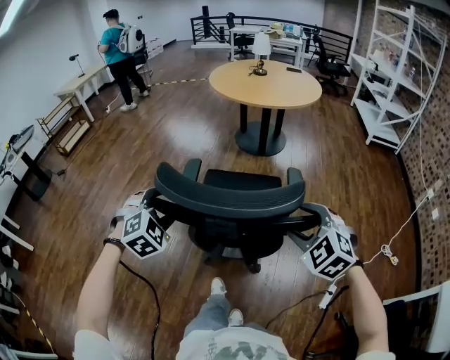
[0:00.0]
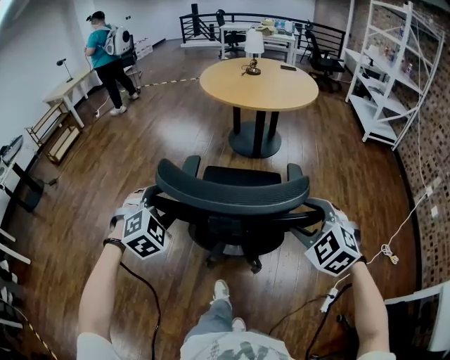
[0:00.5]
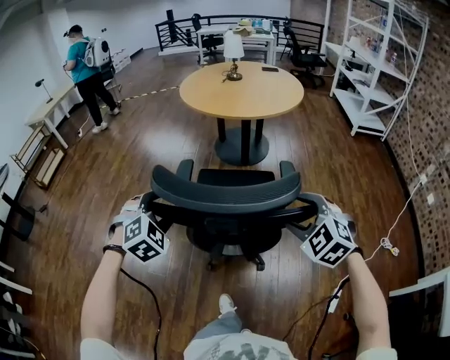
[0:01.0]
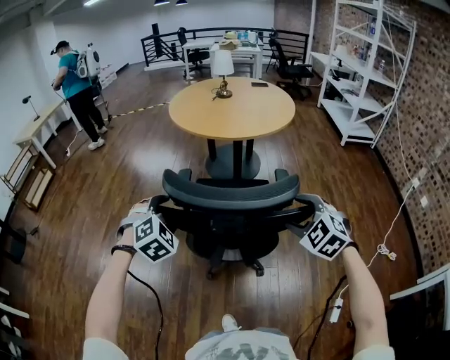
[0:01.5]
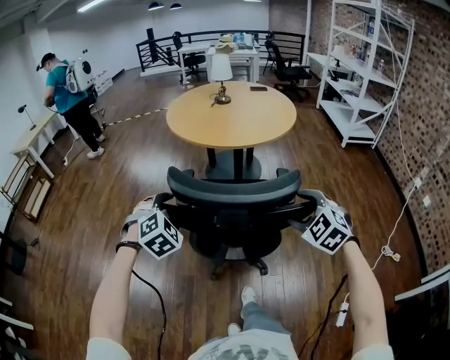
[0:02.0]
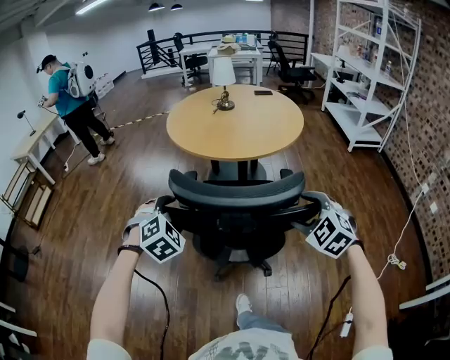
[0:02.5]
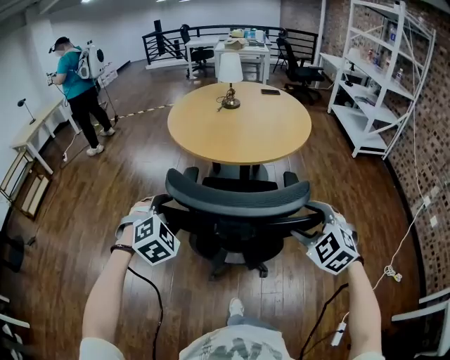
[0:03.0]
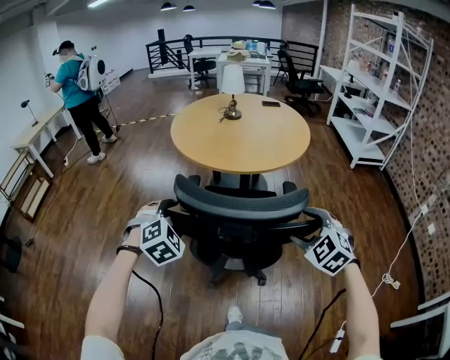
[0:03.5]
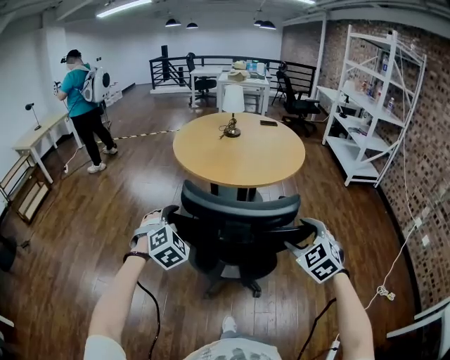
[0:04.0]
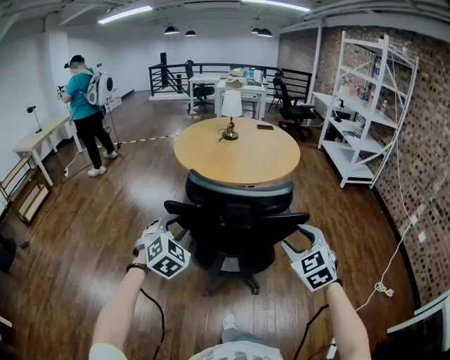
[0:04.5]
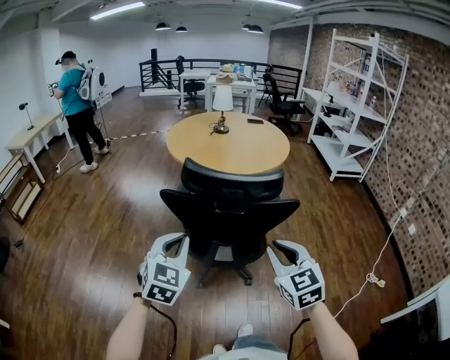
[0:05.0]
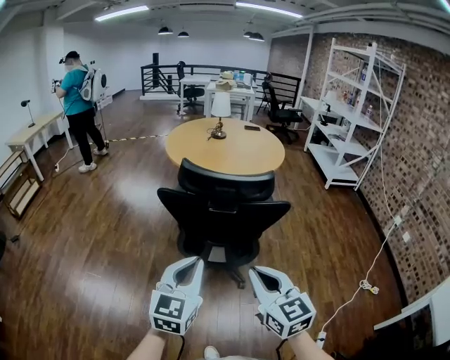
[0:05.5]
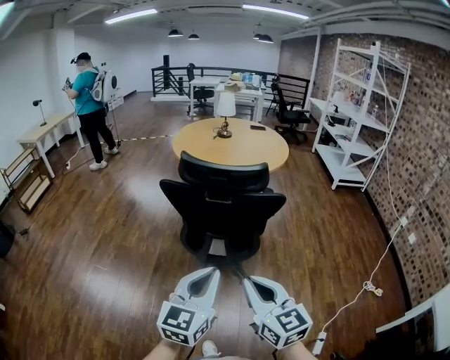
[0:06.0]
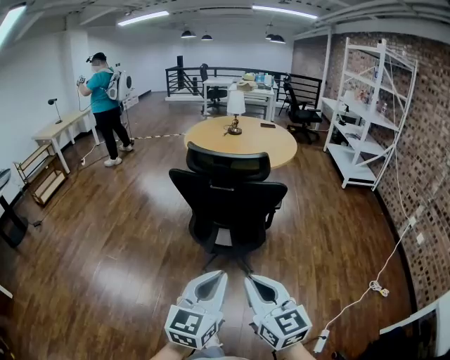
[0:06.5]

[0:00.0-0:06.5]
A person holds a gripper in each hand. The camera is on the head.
0:00.0 to 0:02.0: The two grippers go approximately 35 cm forward.
0:02.0 to 0:04.5: The right gripper moves about 10 cm forward and comes back, and swivels about 20 degrees, while the left gripper moves roughly 15 cm forward and comes back.
0:04.5 to 0:06.5: The left gripper travels backward and to the right by about 40 cm, twists approximately 50 degrees counterclockwise, seen from behind, and closes up. Meanwhile the right gripper heads backward, covering approximately 30 cm, swivels some 40 degrees, and closes.

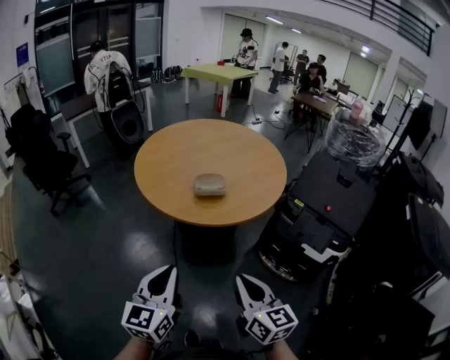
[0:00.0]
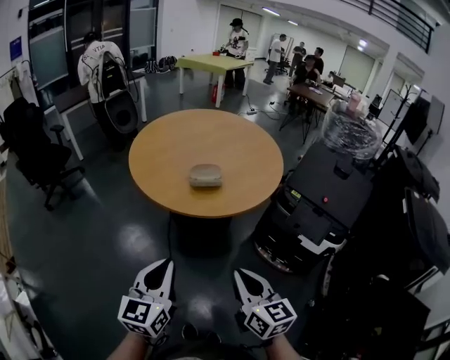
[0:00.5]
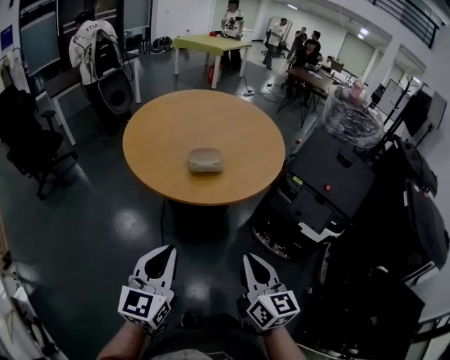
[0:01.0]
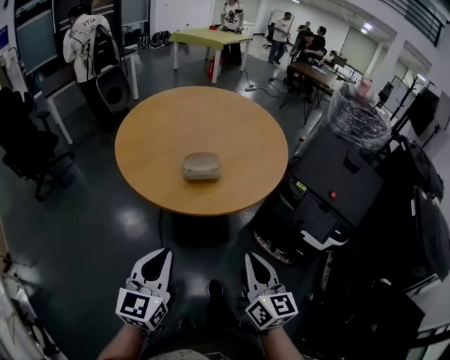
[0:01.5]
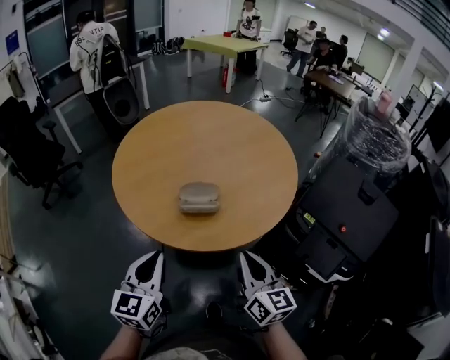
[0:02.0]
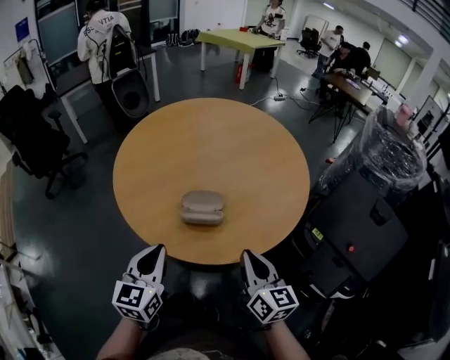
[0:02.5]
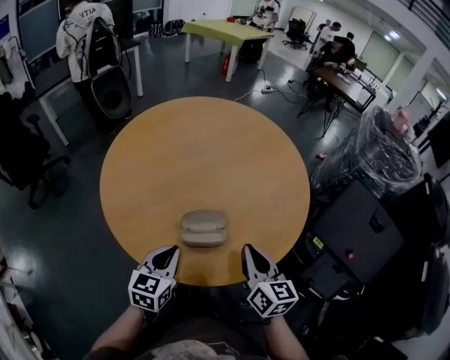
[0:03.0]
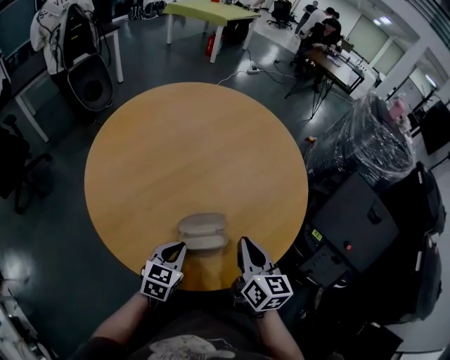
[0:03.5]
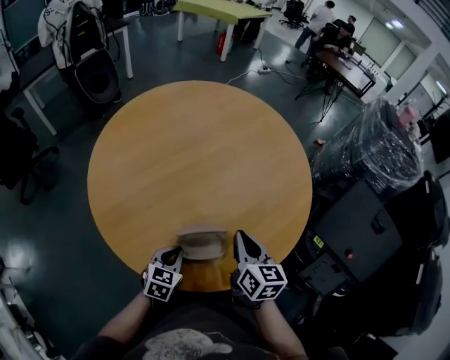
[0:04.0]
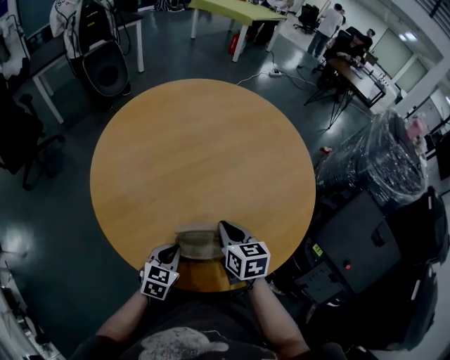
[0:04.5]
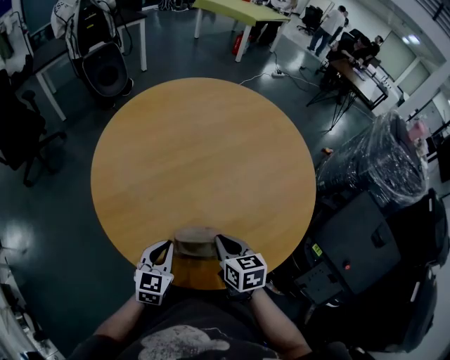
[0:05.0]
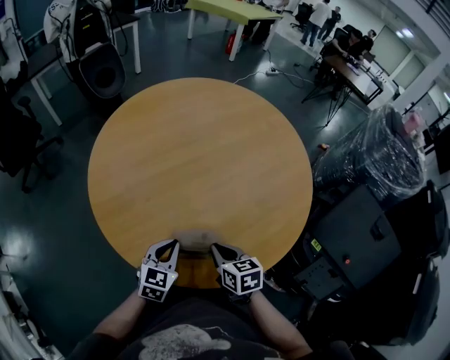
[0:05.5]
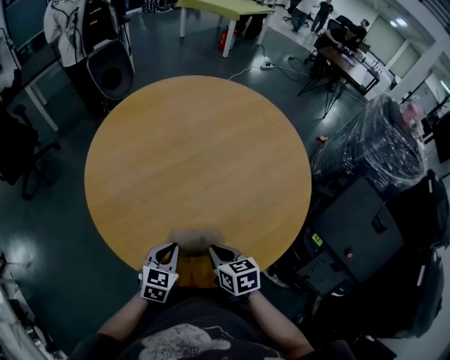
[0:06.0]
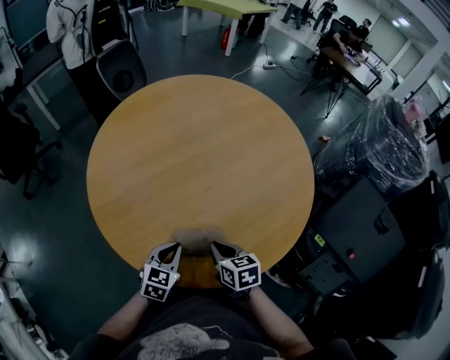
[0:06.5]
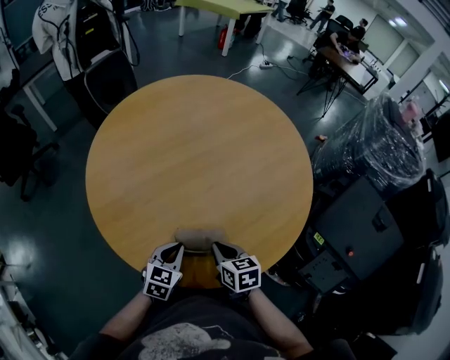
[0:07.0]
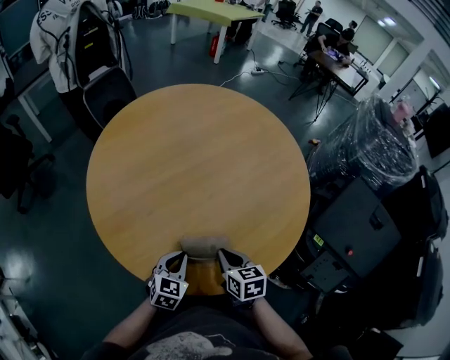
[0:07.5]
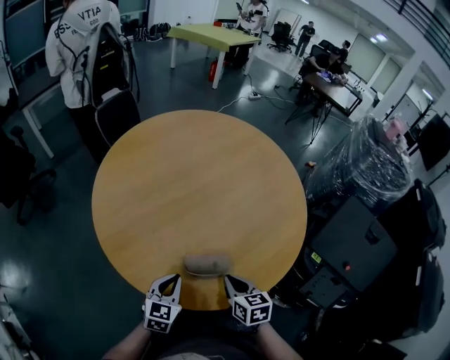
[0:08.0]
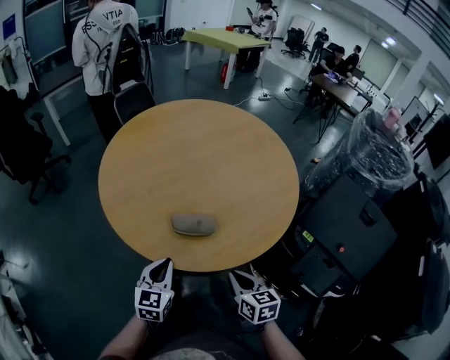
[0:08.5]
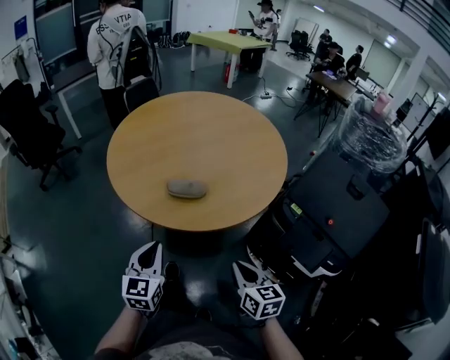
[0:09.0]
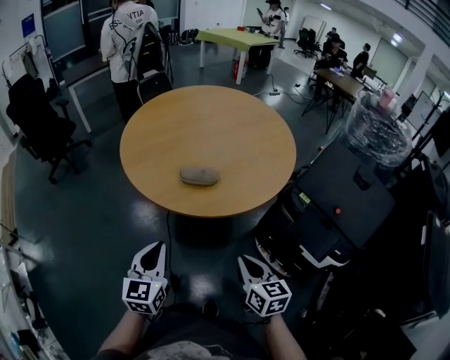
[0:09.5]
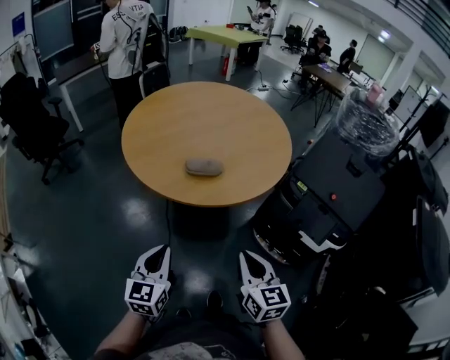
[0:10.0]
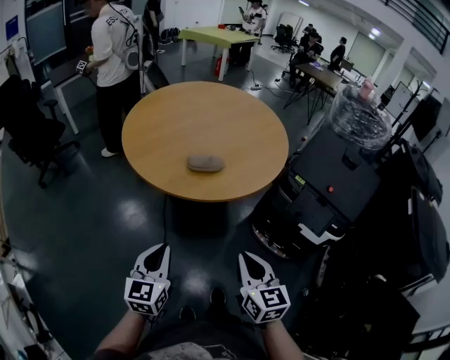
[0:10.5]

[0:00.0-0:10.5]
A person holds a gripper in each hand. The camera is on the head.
0:00.0 to 0:02.0: Both grippers travel together forward, approximately 25 cm.
0:02.0 to 0:04.0: The left gripper travels forward and downward by approximately 35 cm, and changes its angle by roughly 30 degrees. The right gripper heads forward, covering some 25 cm.
0:04.0 to 0:06.5: The right gripper moves downward and to the left, roughly 10 cm, and turns by approximately 30 degrees.
0:06.5 to 0:08.5: The left gripper travels backward and upward by some 15 cm. The right gripper heads backward and to the right, covering some 20 cm.
0:08.5 to 0:10.5: Both grippers move backward, approximately 25 cm. The right gripper changes its angle by some 20 degrees.

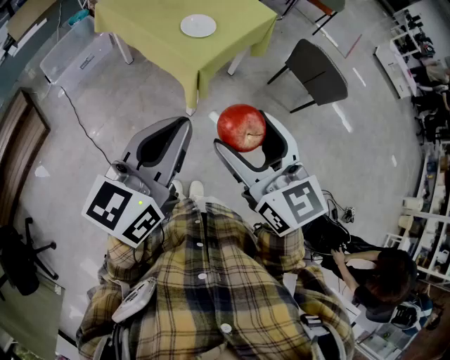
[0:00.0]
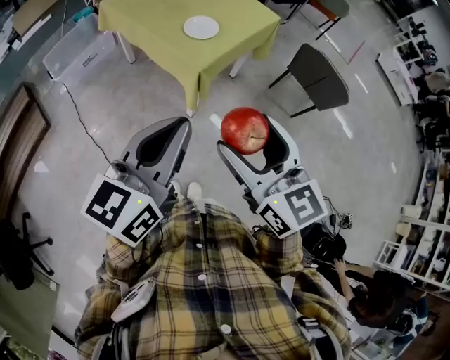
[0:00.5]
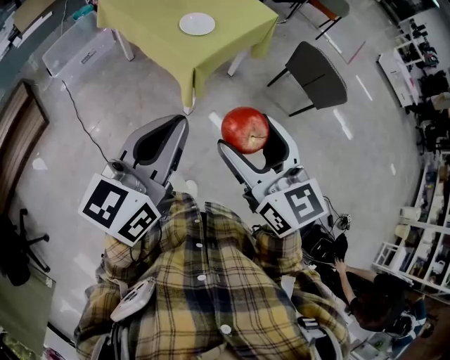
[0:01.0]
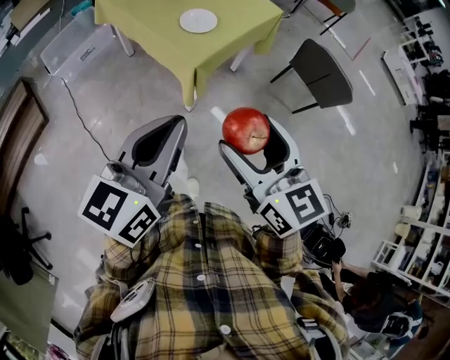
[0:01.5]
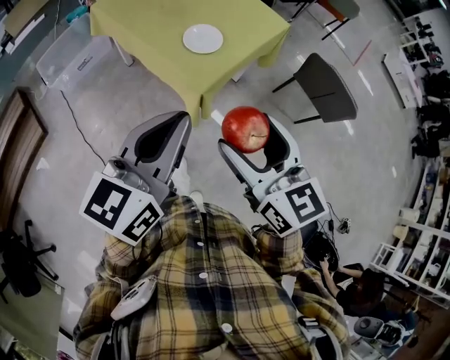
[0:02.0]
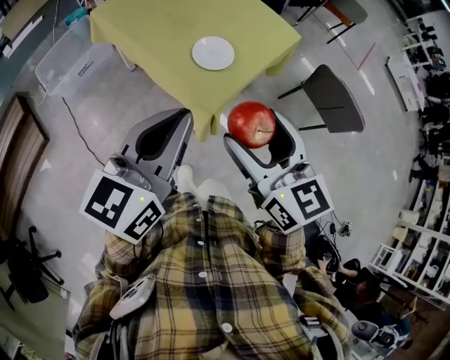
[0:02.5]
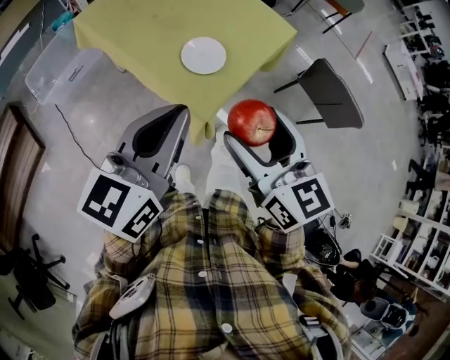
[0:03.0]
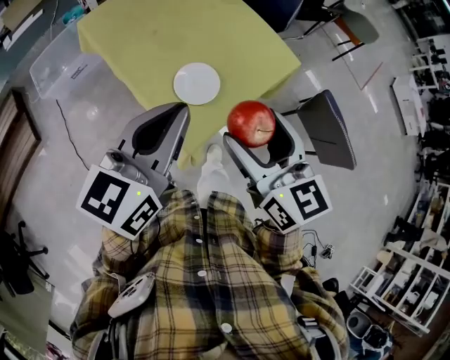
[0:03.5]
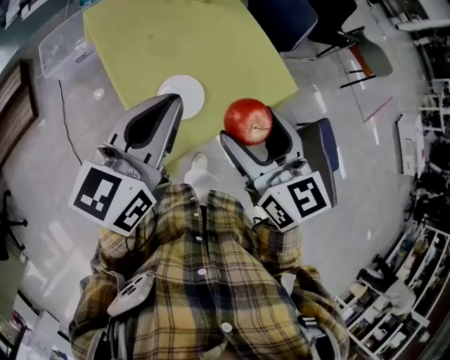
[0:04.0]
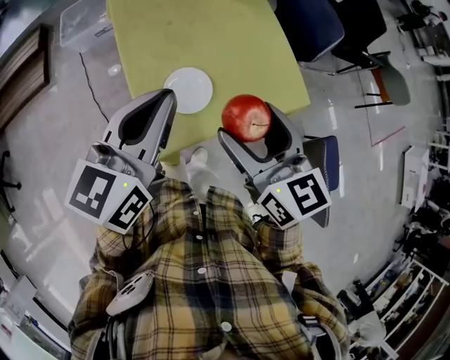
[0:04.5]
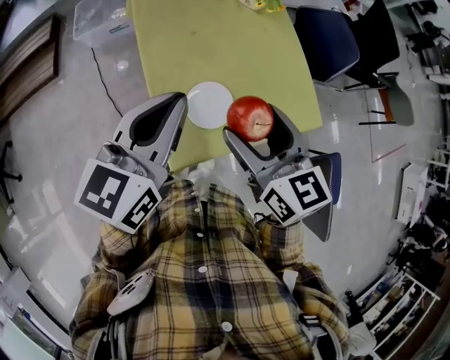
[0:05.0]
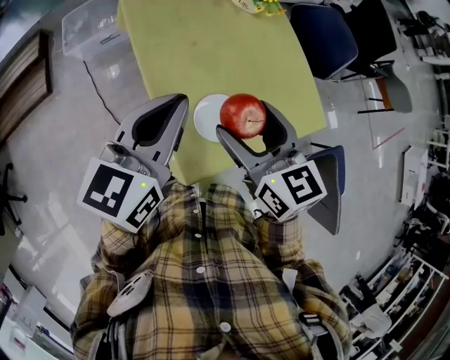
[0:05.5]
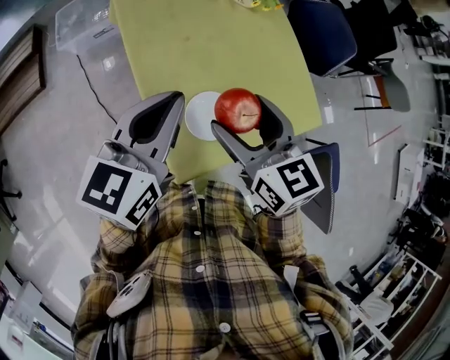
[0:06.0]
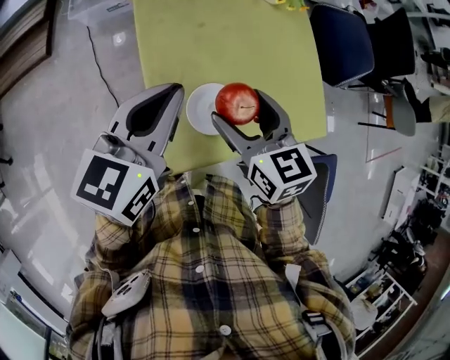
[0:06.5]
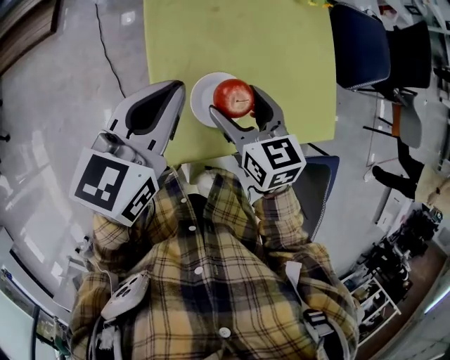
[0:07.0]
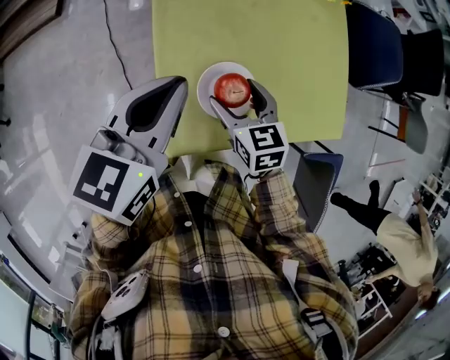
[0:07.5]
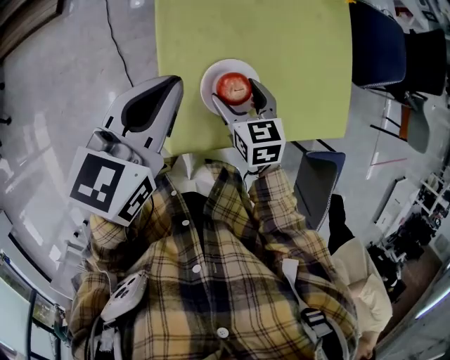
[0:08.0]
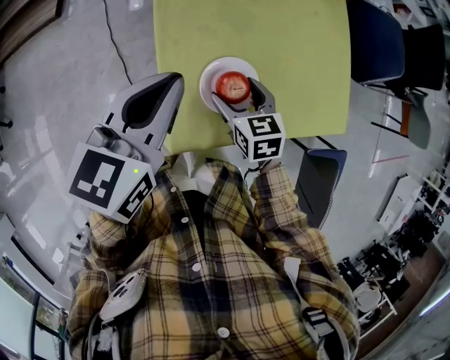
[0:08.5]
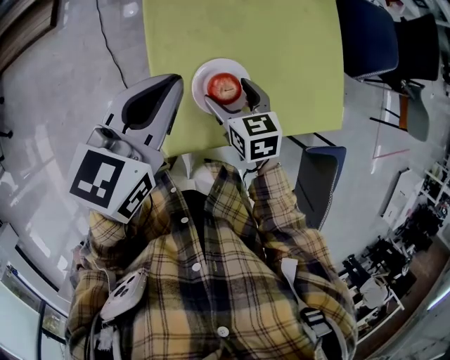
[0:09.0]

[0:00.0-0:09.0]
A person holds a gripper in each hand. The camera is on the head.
0:00.0 to 0:02.0: The grippers both shift forward by about 15 cm.
0:02.0 to 0:04.5: The right gripper shifts by roughly 40 cm, and turns by roughly 30 degrees. Meanwhile the left gripper moves approximately 35 cm, and swivels some 30 degrees.
0:04.5 to 0:07.0: The left gripper goes some 15 cm forward, to the left and downward. Meanwhile the right gripper goes approximately 25 cm downward, forward and to the left, and changes its angle by approximately 20 degrees.
0:07.0 to 0:09.0: The right gripper goes about 10 cm downward.

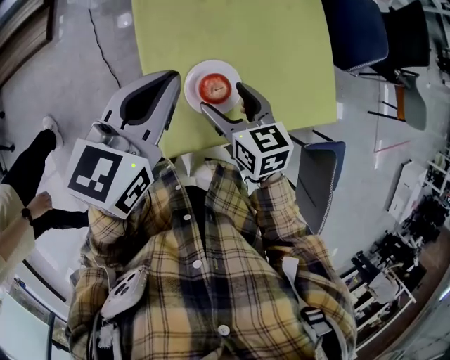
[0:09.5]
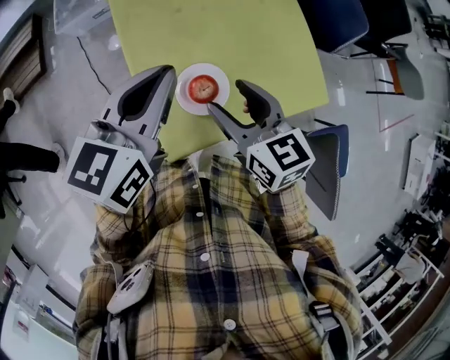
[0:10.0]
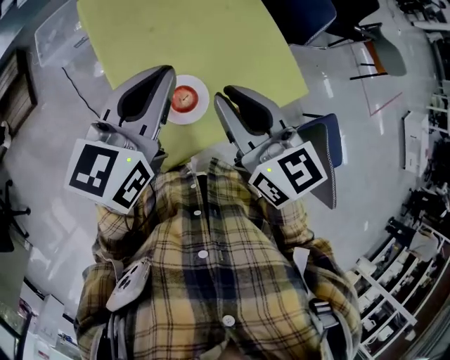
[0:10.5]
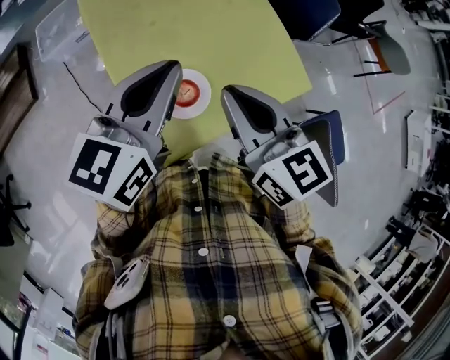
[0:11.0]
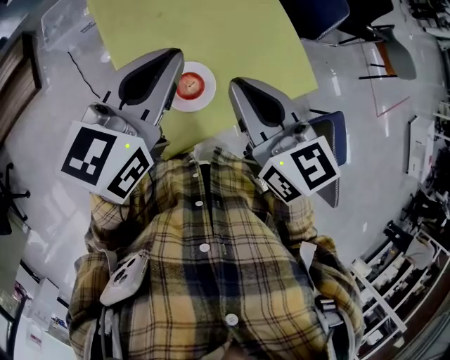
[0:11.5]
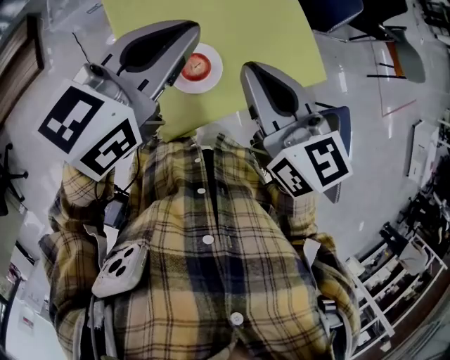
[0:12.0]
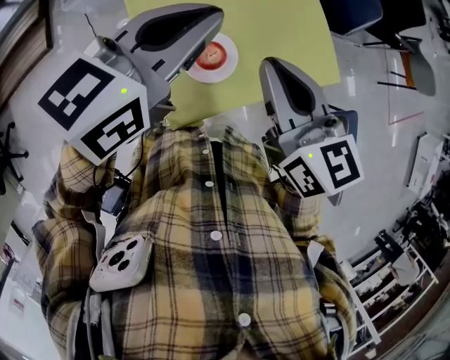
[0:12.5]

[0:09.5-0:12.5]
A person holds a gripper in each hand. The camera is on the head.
0:09.5 to 0:11.0: The right gripper is displaced upward by some 20 cm, changes its angle by about 30 degrees, and closes, while the left gripper goes roughly 10 cm to the right and upward.
0:11.0 to 0:12.5: The grippers make only small movements.
